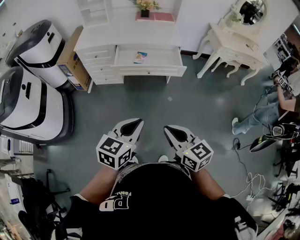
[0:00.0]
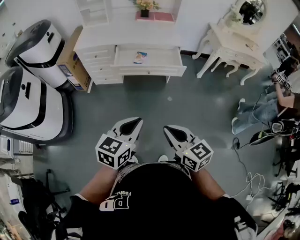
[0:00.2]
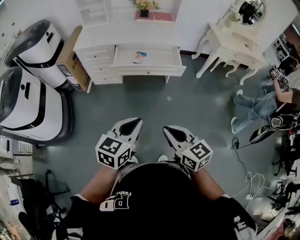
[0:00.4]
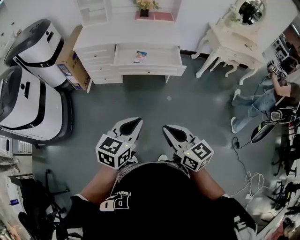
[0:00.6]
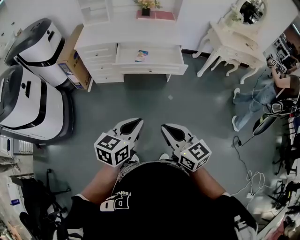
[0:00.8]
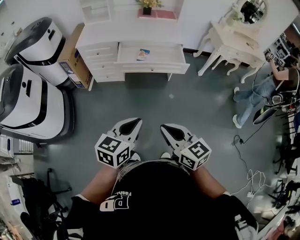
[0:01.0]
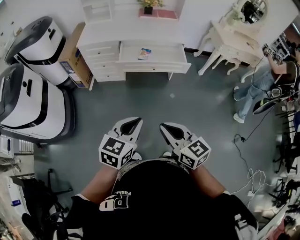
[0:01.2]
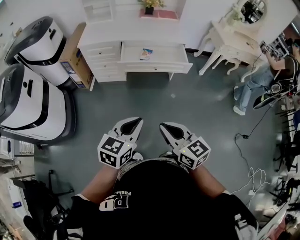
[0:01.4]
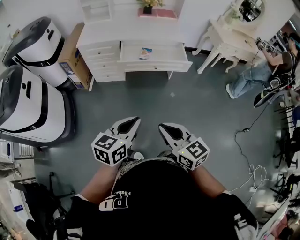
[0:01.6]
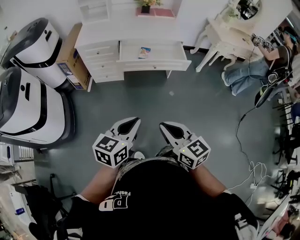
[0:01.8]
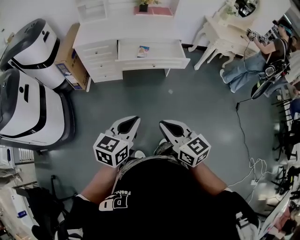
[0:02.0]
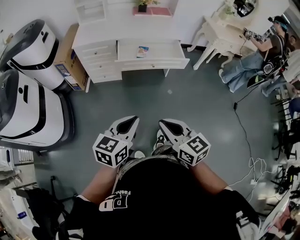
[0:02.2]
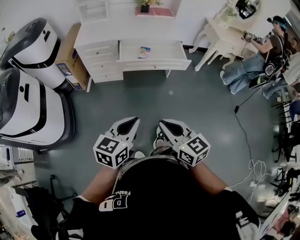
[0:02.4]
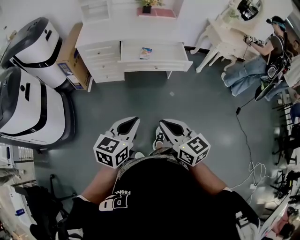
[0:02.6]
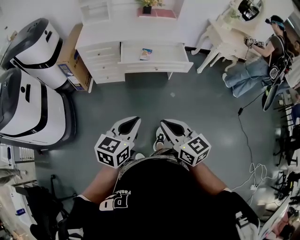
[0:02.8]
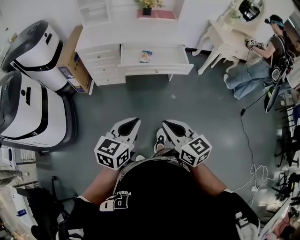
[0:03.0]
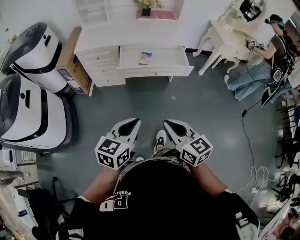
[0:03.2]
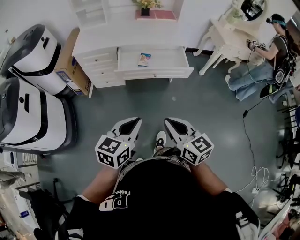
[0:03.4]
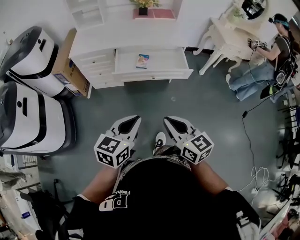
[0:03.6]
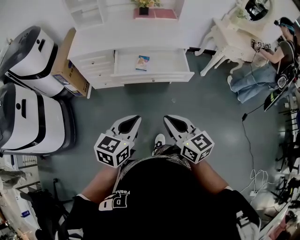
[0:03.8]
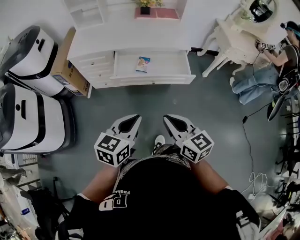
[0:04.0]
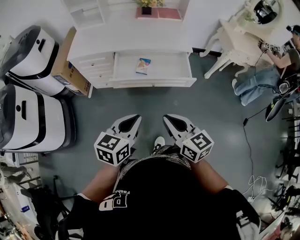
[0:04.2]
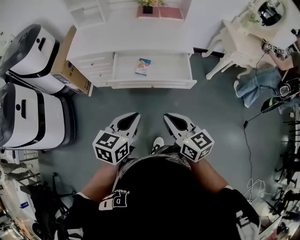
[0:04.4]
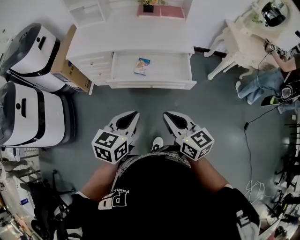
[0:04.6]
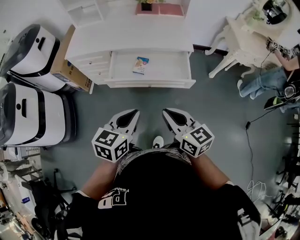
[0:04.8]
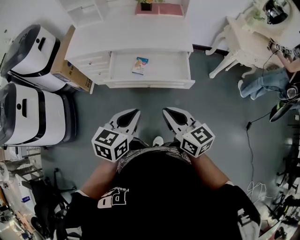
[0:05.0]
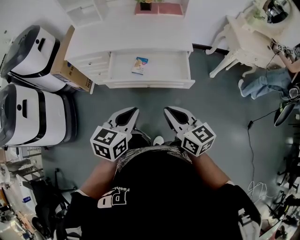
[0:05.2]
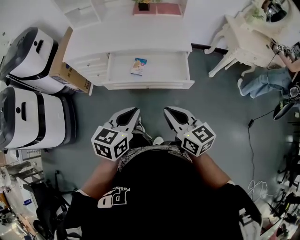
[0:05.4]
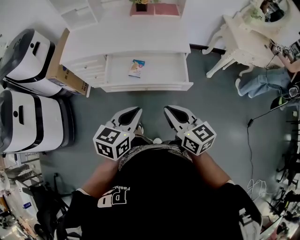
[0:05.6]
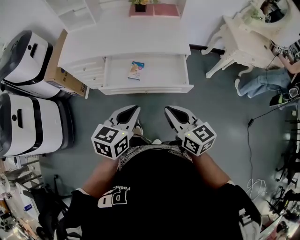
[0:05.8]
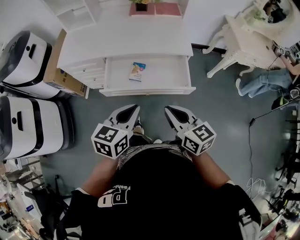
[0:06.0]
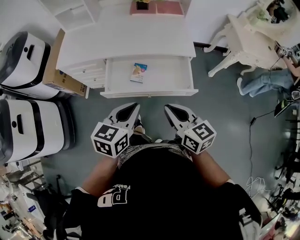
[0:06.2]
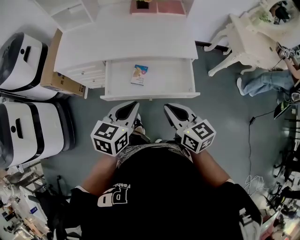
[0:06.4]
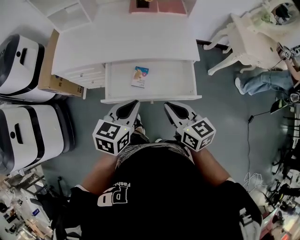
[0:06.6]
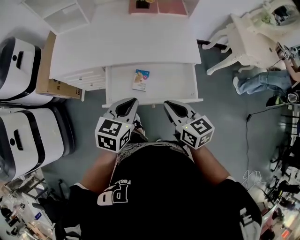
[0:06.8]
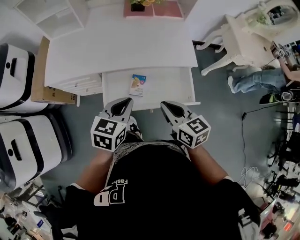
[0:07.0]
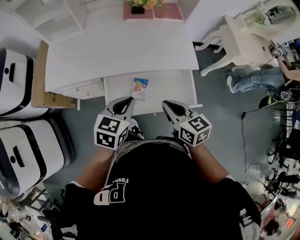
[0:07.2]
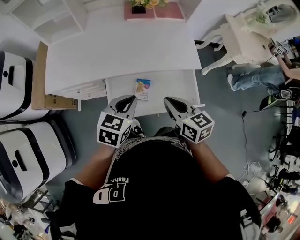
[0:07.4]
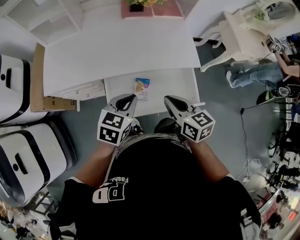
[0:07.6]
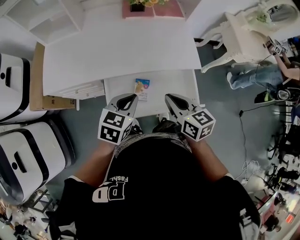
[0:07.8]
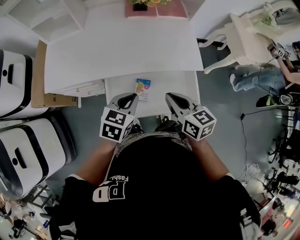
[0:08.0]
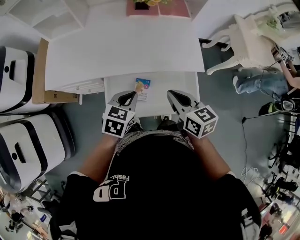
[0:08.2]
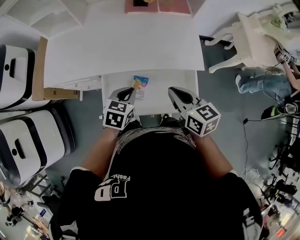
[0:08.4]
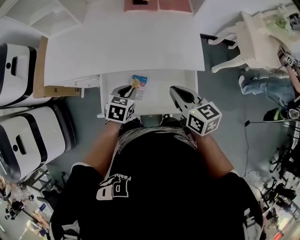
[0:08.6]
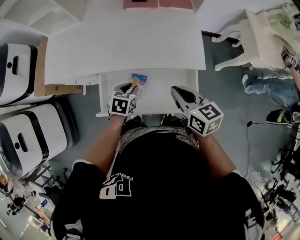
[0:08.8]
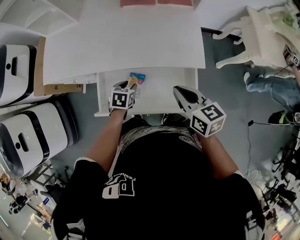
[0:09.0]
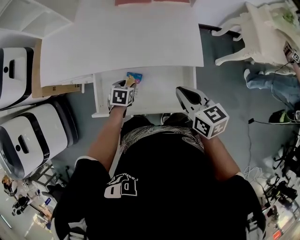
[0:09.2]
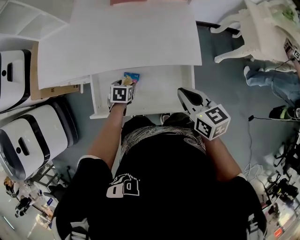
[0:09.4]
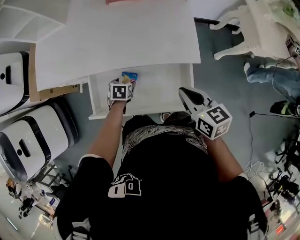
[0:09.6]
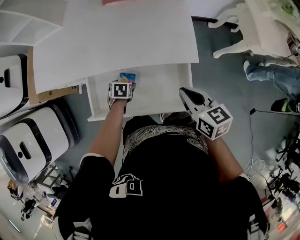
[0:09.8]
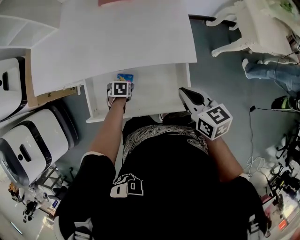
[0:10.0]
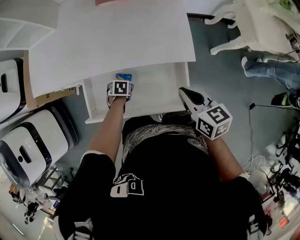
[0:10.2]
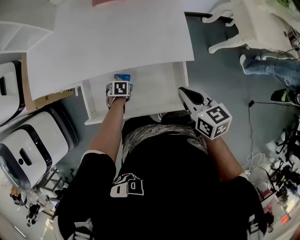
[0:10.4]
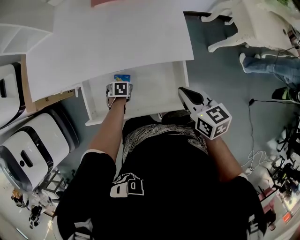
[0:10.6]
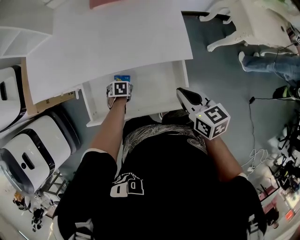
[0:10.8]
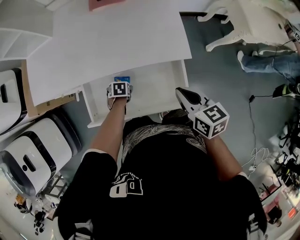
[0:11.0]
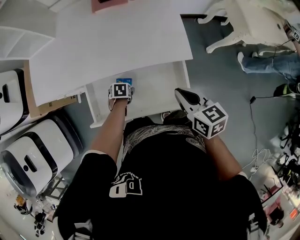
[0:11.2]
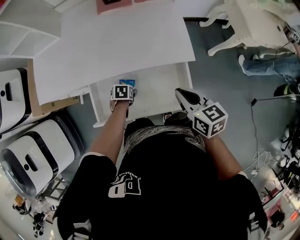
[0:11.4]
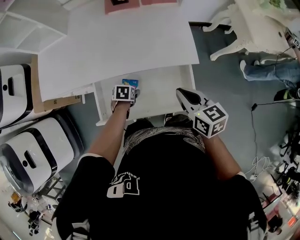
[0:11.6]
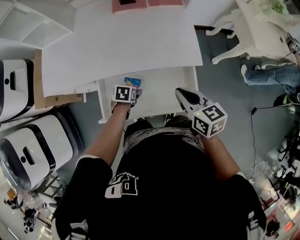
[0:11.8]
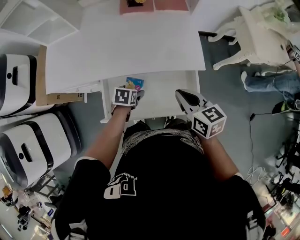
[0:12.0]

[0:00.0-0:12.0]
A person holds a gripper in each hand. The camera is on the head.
0.0 to 1.6 s: Both grippers move to the left, some 10 cm.
1.6 to 3.0 s: The grippers stay close to where they were, moving slightly.
3.0 to 4.4 s: The two grippers go some 25 cm forward and to the right.
4.4 to 6.0 s: Both grippers move forward, approximately 10 cm.
6.0 to 7.6 s: Both grippers move forward and to the left, roughly 25 cm.
7.6 to 9.0 s: The left gripper moves downward, roughly 20 cm, turns by approximately 30 degrees, and opens; the right gripper is displaced to the right and forward by some 15 cm.
9.0 to 10.4 s: The right gripper shifts by roughly 10 cm; the left gripper goes some 15 cm downward, rotates roughly 20 degrees, and opens.
10.4 to 12.0 s: The right gripper changes place by approximately 10 cm; the left gripper shifts roughly 10 cm upward.

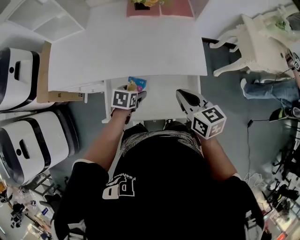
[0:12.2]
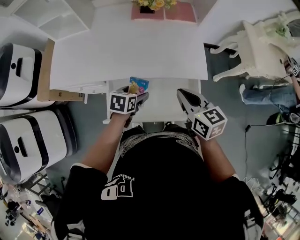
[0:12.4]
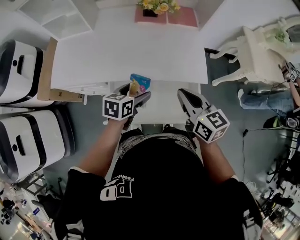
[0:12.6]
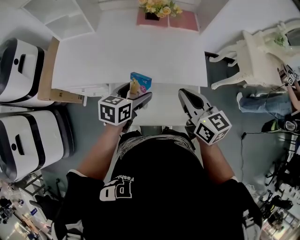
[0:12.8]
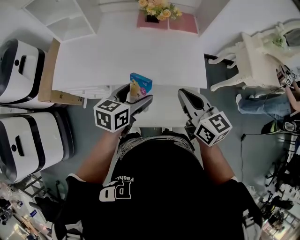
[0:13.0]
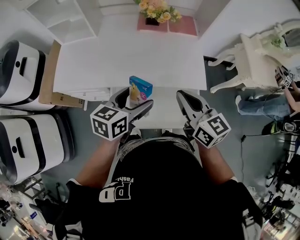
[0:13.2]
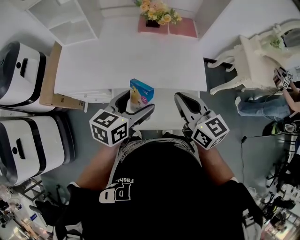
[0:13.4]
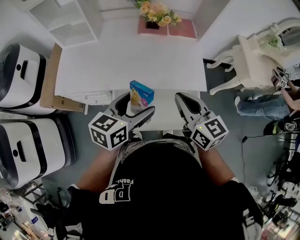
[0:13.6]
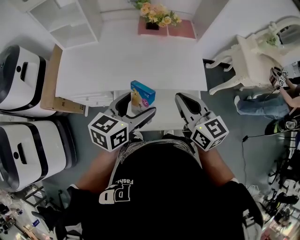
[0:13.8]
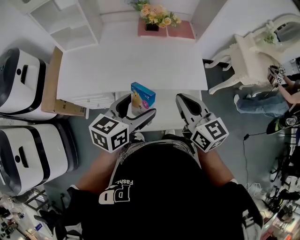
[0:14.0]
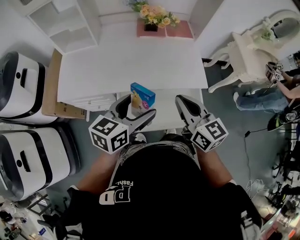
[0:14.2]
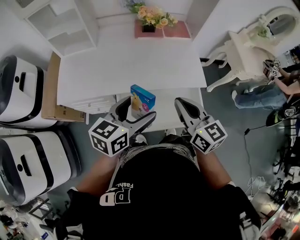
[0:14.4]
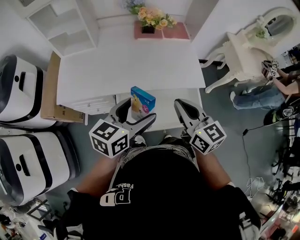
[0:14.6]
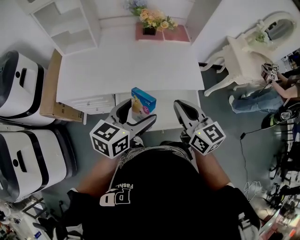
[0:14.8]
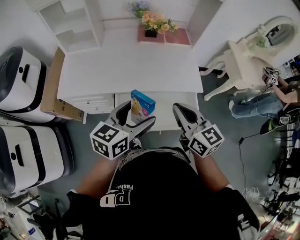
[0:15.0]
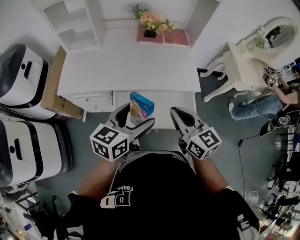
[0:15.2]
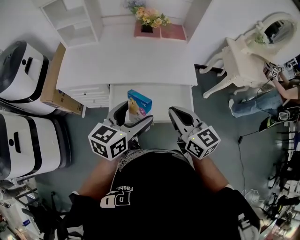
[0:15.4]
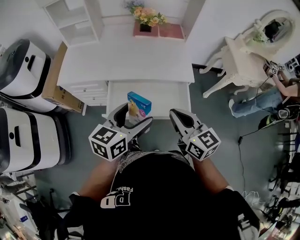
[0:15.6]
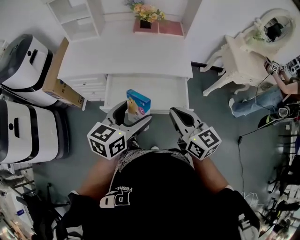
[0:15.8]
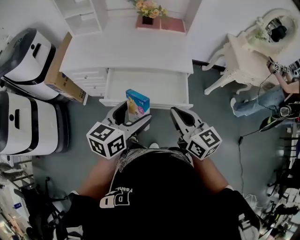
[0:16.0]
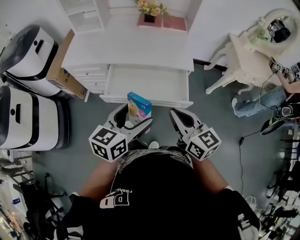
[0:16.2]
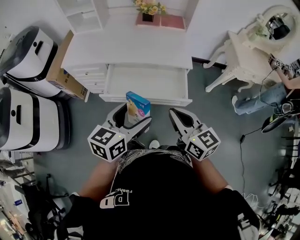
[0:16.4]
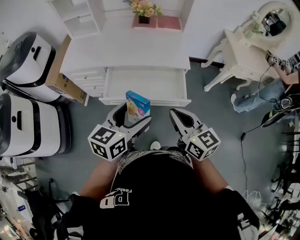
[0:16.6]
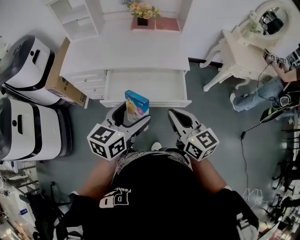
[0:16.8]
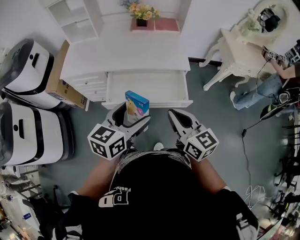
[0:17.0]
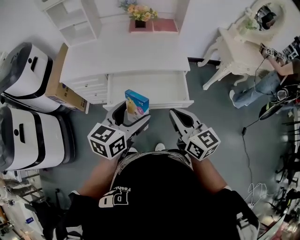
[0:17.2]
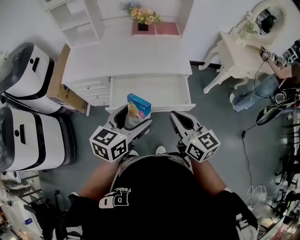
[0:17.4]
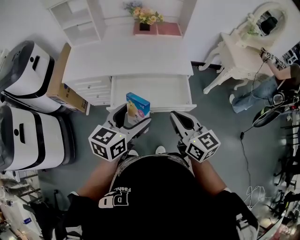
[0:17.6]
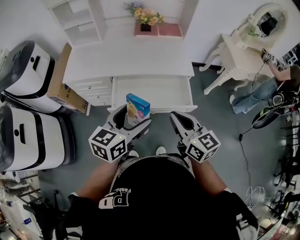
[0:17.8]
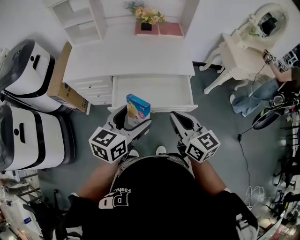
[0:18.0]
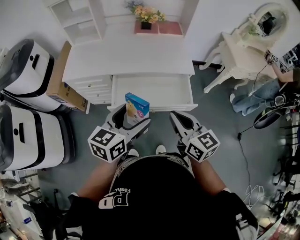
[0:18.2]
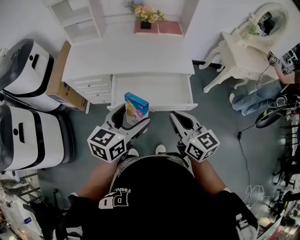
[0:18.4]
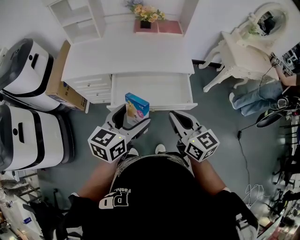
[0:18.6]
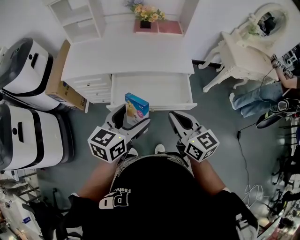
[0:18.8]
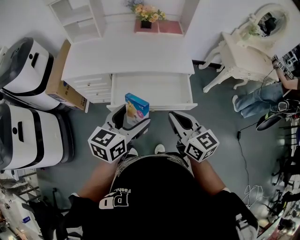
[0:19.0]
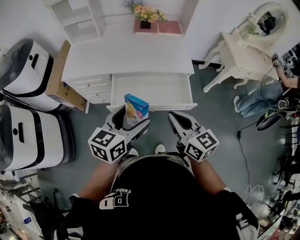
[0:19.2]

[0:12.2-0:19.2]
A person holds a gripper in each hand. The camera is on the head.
12.2 to 13.6 s: The left gripper travels upward by approximately 25 cm, and tips its fingers upward by approximately 40 degrees. Meanwhile the right gripper is displaced upward and to the left by some 15 cm.
13.6 to 15.0 s: Both grippers move backward, some 5 cm.
15.0 to 16.4 s: The grippers both shift backward and to the right by about 25 cm.
16.4 to 17.8 s: Both grippers move to the left, roughly 5 cm.
17.8 to 19.2 s: The two grippers keep their place.

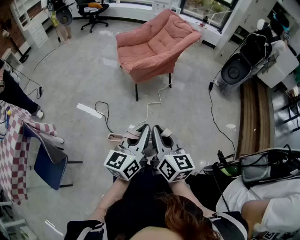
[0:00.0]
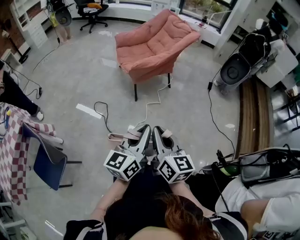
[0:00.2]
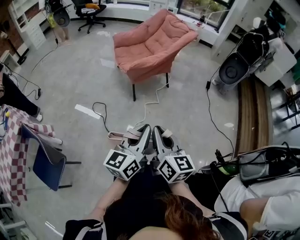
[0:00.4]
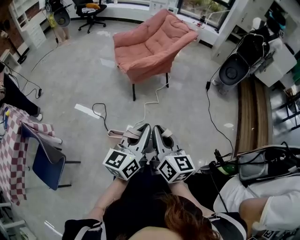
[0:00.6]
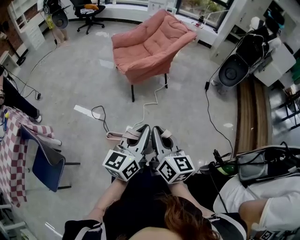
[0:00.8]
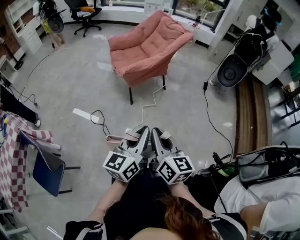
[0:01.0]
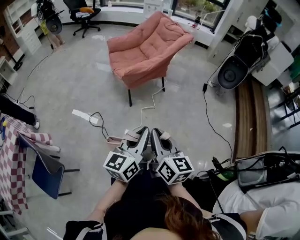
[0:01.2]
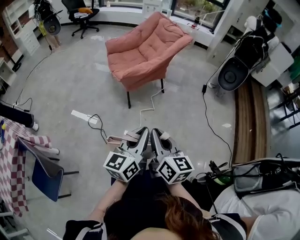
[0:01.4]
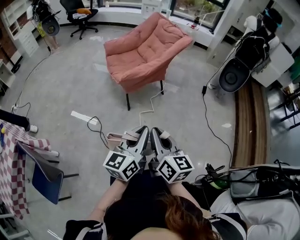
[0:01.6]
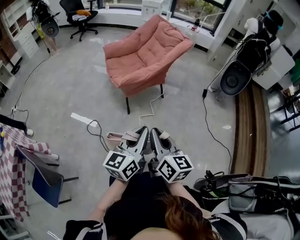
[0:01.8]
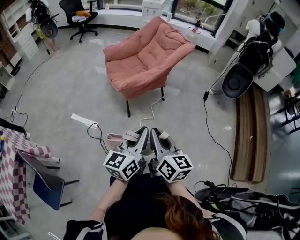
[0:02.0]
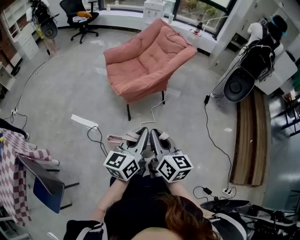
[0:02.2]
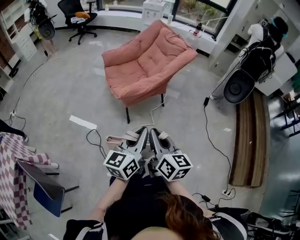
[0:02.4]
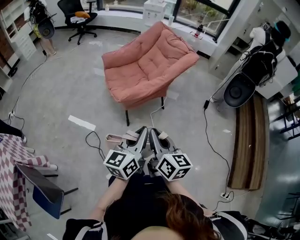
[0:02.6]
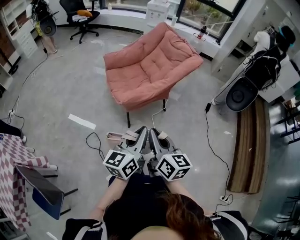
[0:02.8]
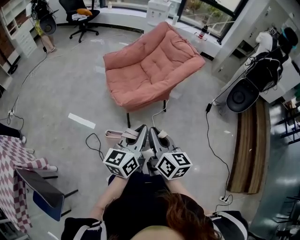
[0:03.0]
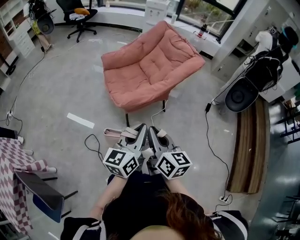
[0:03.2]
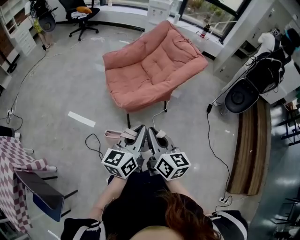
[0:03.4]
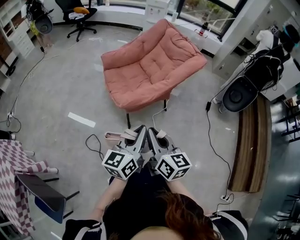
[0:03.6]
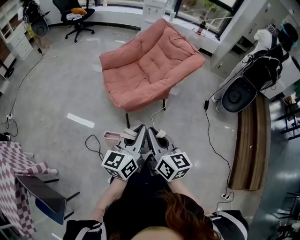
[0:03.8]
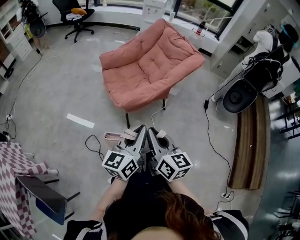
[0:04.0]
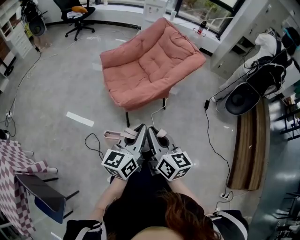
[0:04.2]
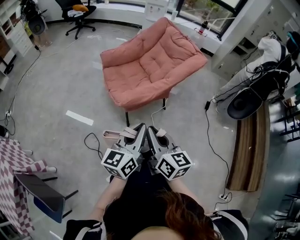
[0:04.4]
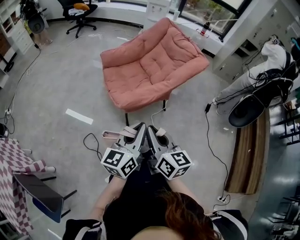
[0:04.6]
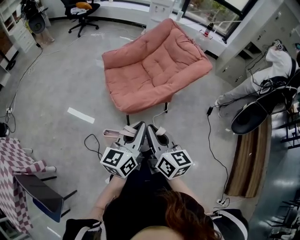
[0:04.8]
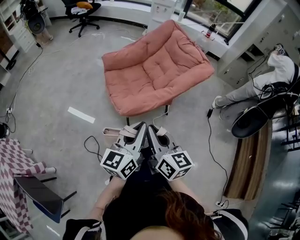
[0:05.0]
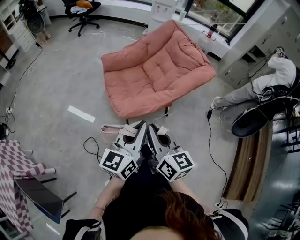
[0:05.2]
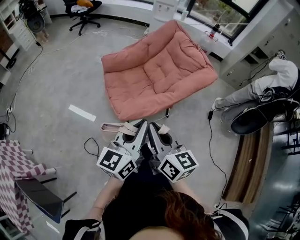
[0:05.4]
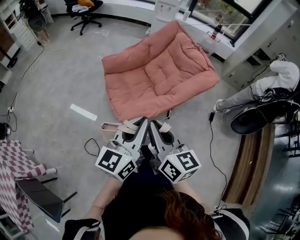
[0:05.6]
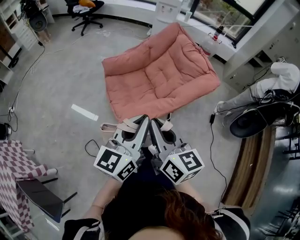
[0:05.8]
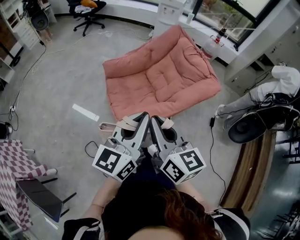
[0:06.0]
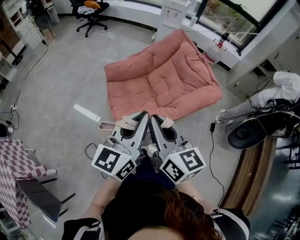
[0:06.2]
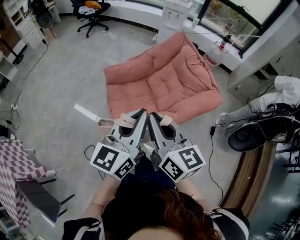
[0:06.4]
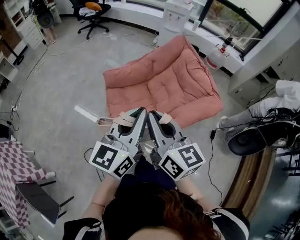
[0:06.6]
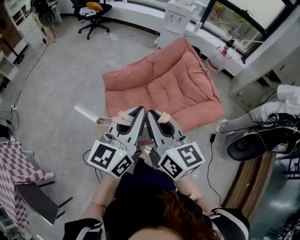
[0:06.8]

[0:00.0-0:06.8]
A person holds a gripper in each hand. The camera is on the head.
0.0 to 1.4 s: The two grippers go about 5 cm forward.
1.4 to 2.8 s: The grippers both shift forward by roughly 25 cm.
2.8 to 4.0 s: The left gripper goes some 5 cm forward; the right gripper changes place by approximately 5 cm.
4.0 to 5.4 s: Both grippers travel together forward, about 15 cm.
5.4 to 6.8 s: Both grippers travel together forward, some 20 cm.
